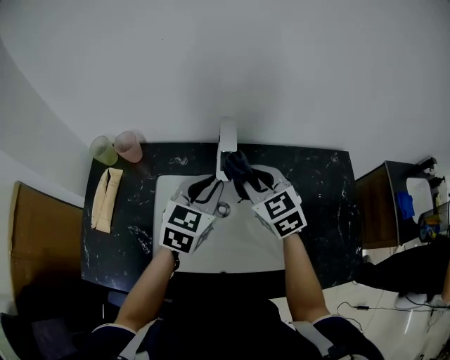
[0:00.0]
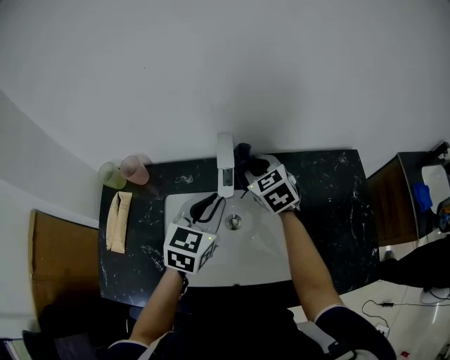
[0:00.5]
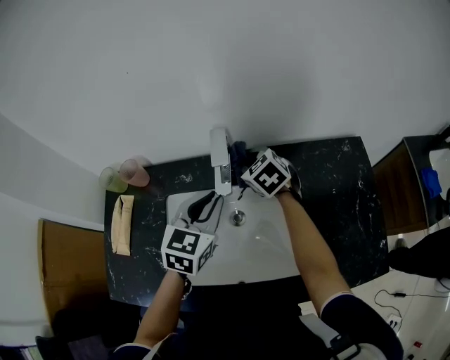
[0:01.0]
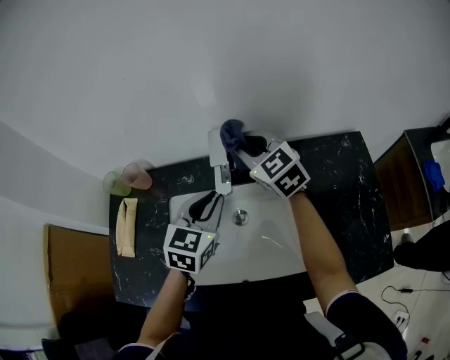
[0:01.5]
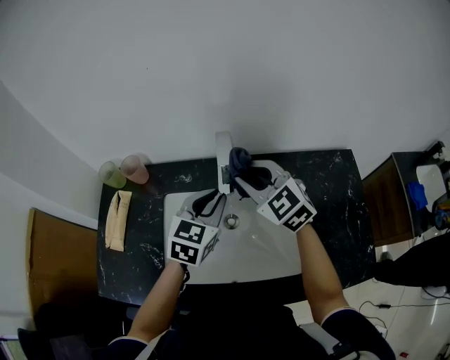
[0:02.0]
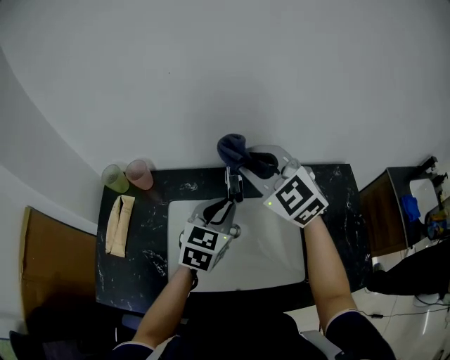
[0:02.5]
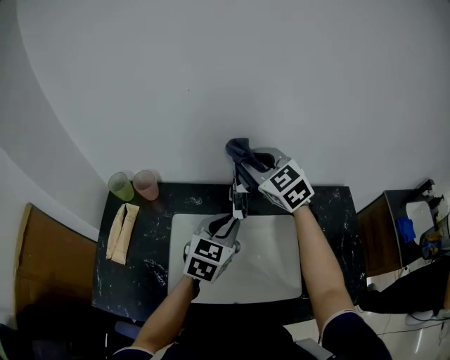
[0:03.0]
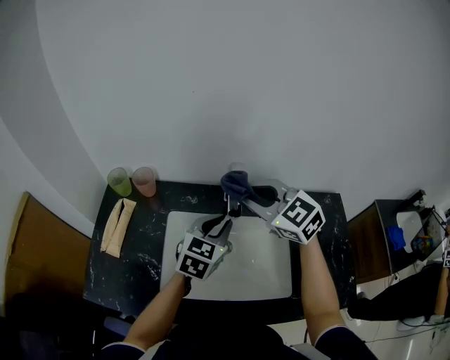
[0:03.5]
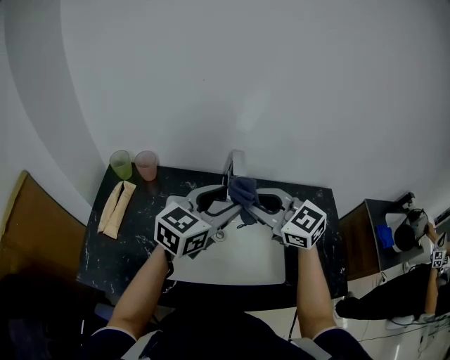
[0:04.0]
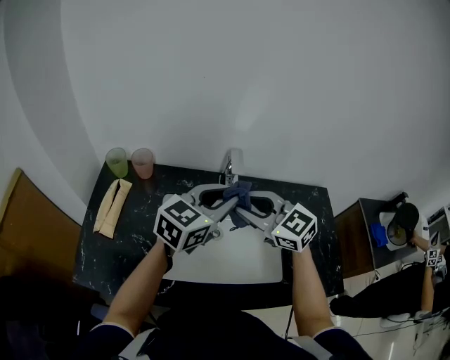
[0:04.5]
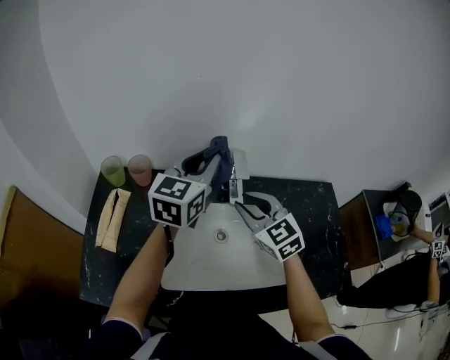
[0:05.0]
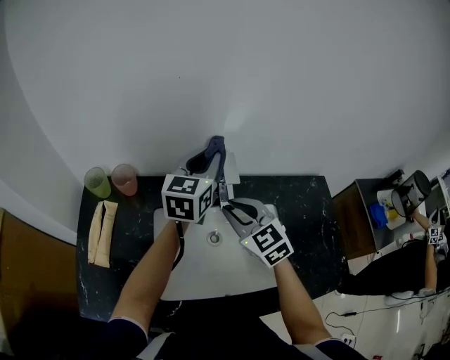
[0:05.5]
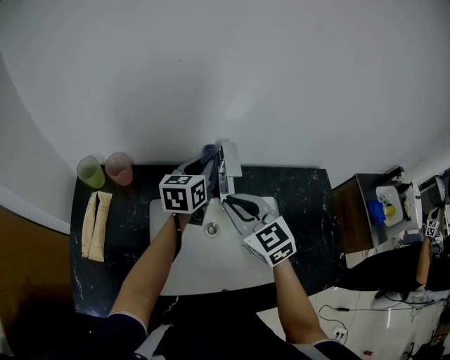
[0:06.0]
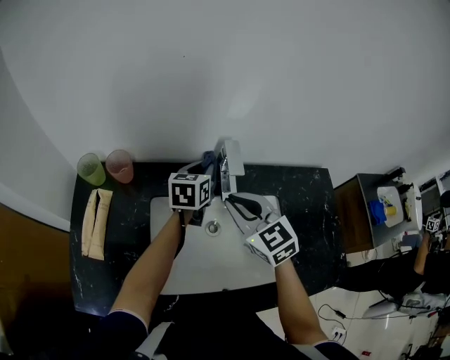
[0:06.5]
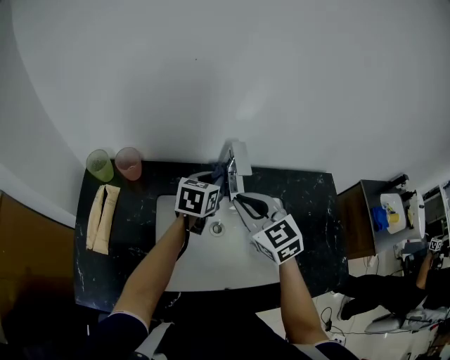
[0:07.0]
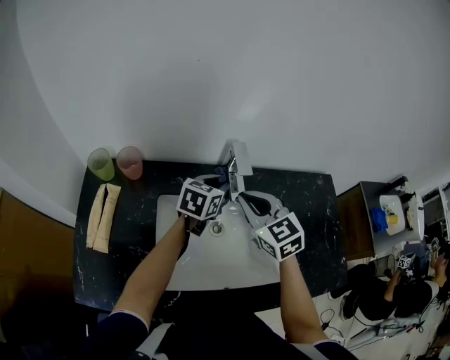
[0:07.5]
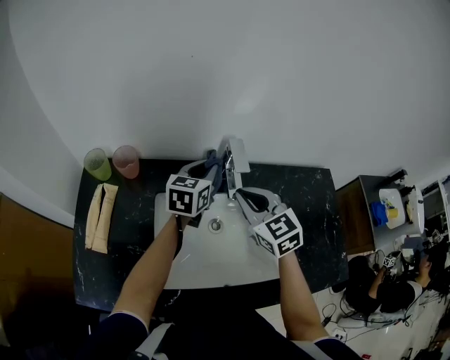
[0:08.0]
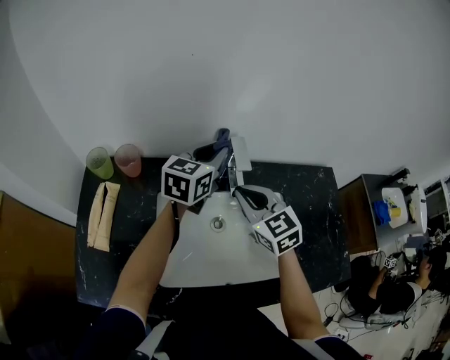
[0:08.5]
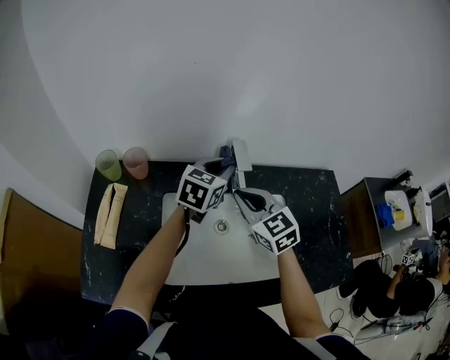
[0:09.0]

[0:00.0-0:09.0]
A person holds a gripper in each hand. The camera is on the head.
2.0 to 4.5 s: The left gripper heads upward, covering about 10 cm, swivels about 30 degrees, and opens and closes again. Meanwhile the right gripper moves backward, some 10 cm.
4.5 to 7.0 s: The right gripper moves downward and forward, roughly 10 cm, and turns by approximately 20 degrees; the left gripper travels downward and forward by about 20 cm, and changes its angle by approximately 30 degrees.
7.0 to 9.0 s: The left gripper travels upward by approximately 10 cm.

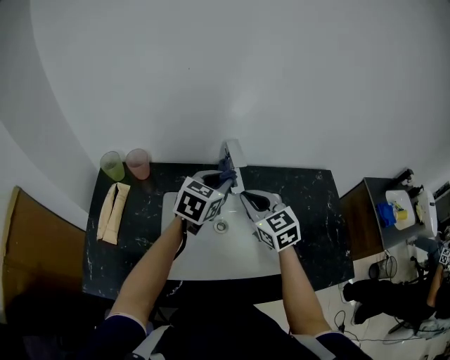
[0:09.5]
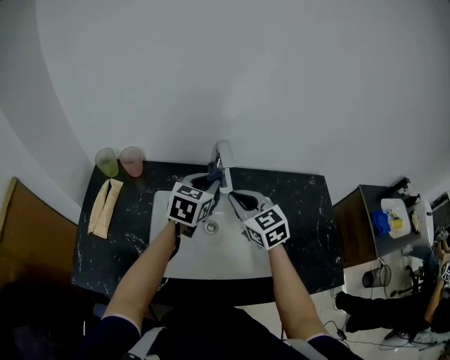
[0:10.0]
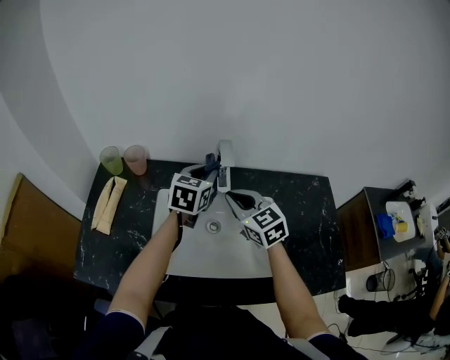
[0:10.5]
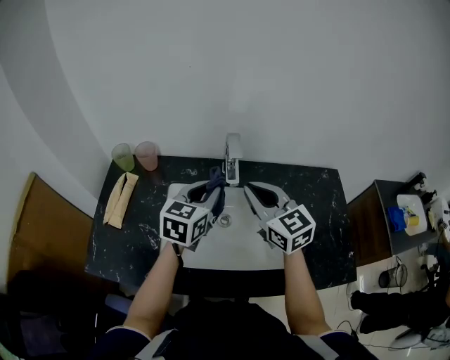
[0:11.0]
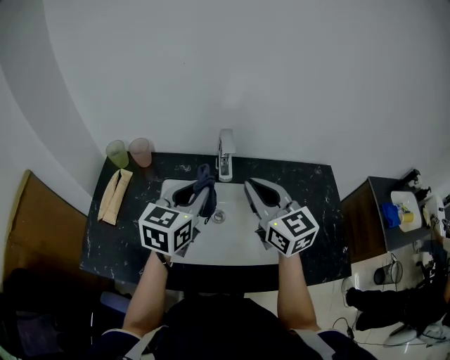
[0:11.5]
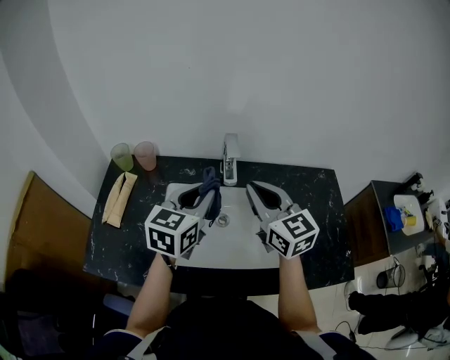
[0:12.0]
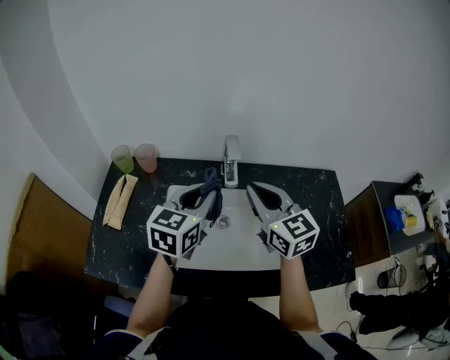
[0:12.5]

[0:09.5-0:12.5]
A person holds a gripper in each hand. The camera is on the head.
9.5 to 11.0 s: The right gripper moves upward, about 10 cm. The left gripper moves backward, roughly 5 cm.
11.0 to 12.5 s: The left gripper moves some 5 cm.

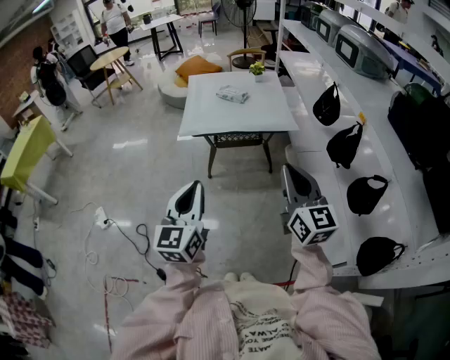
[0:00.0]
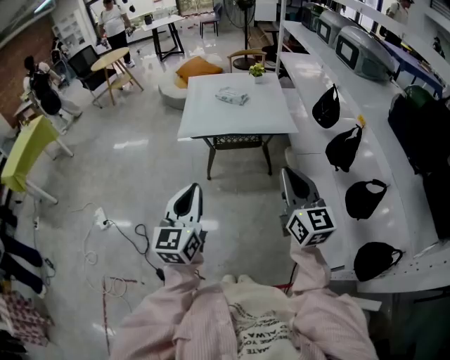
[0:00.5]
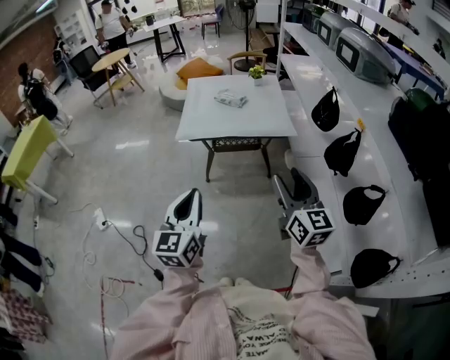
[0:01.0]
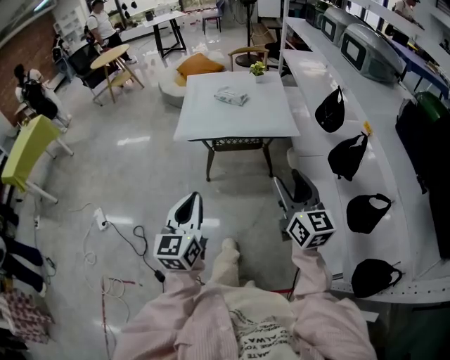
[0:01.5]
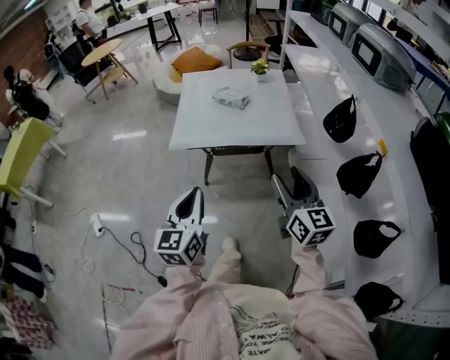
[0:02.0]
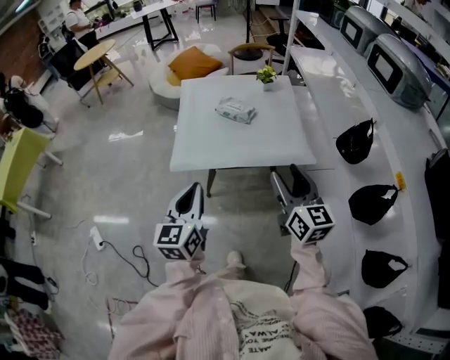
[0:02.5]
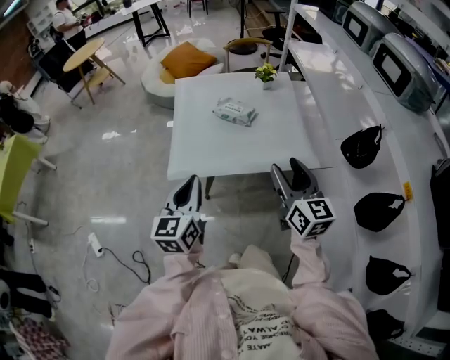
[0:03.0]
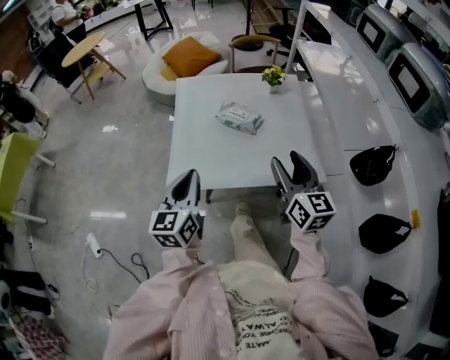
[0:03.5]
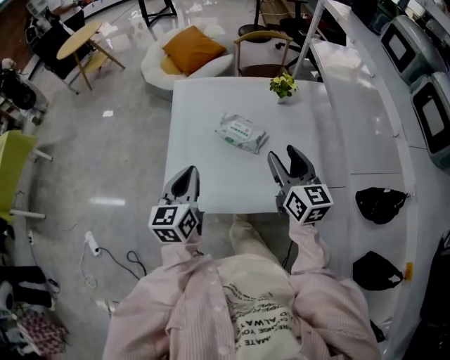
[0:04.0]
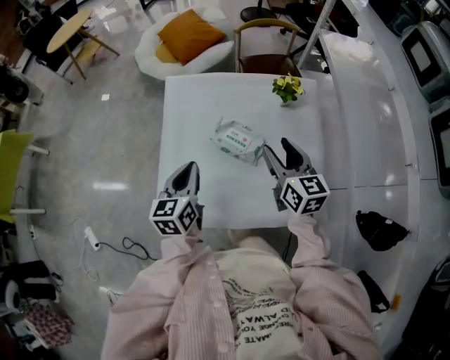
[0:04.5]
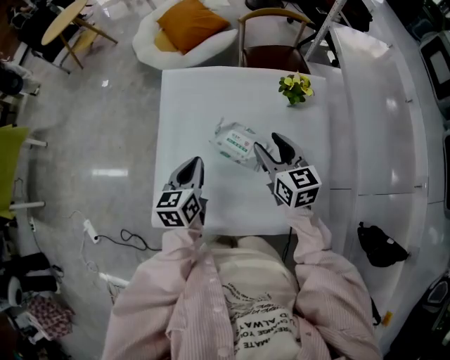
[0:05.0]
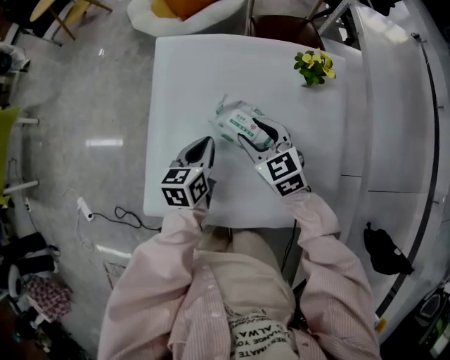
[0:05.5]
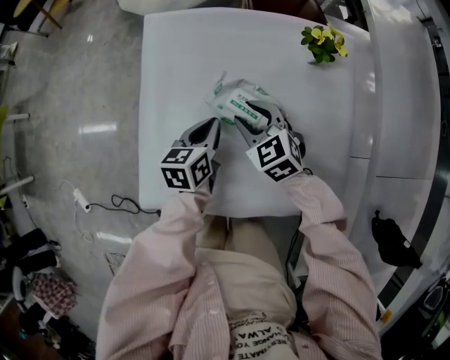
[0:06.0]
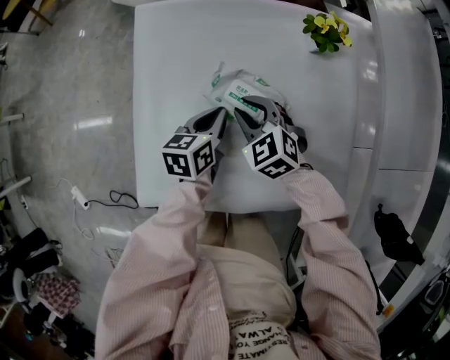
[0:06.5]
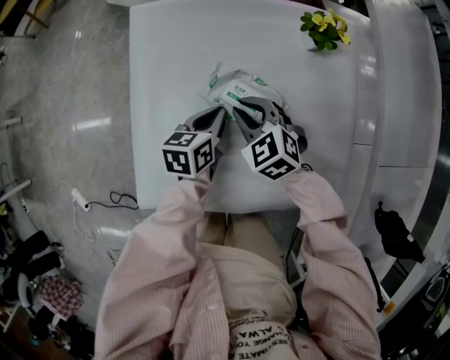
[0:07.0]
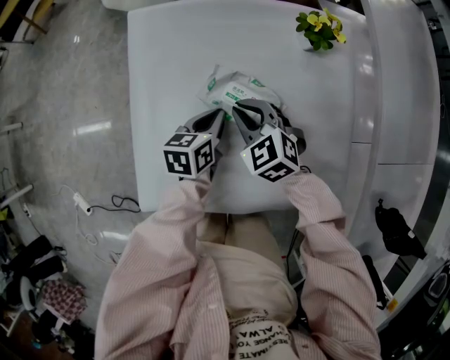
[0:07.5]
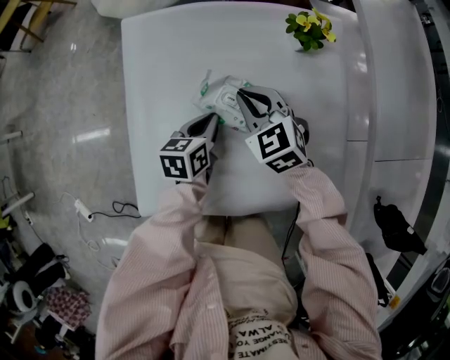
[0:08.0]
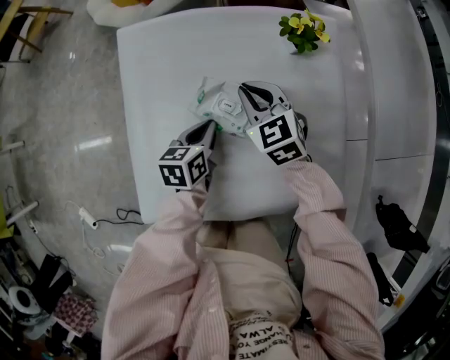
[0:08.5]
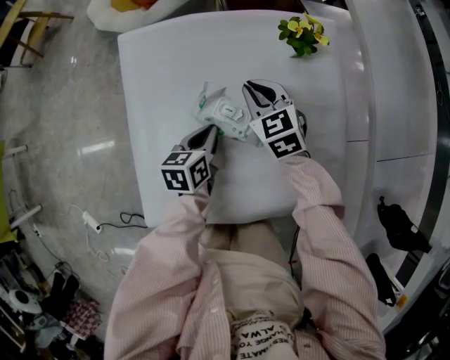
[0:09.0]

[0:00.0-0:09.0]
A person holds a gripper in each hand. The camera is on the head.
0.0 to 2.0 s: The two grippers go roughly 20 cm forward and downward. The right gripper opens.
2.0 to 4.5 s: The pair of grippers is taken forward, approximately 60 cm.
4.5 to 7.0 s: The left gripper goes about 20 cm downward, forward and to the right, and changes its angle by some 30 degrees, while the right gripper goes some 25 cm downward and to the left, rotates some 50 degrees, and closes up.
7.0 to 9.0 s: The right gripper moves forward and to the right, about 10 cm, and changes its angle by approximately 20 degrees.

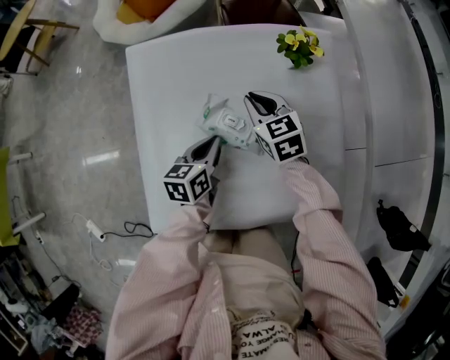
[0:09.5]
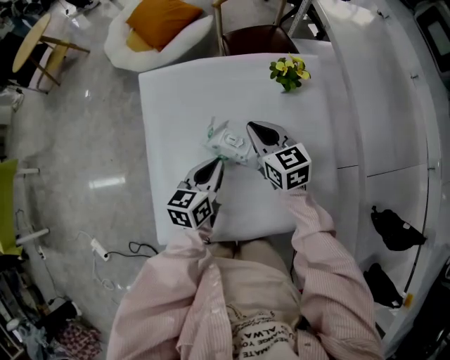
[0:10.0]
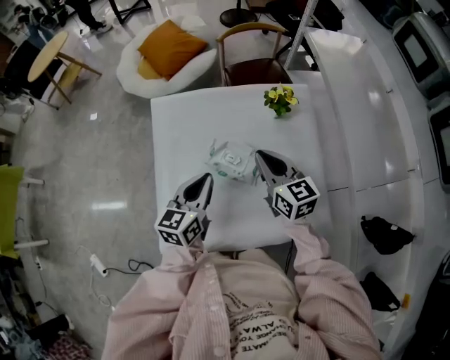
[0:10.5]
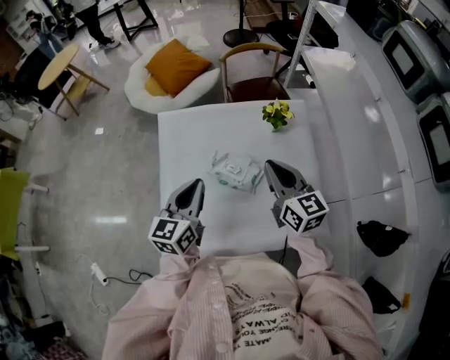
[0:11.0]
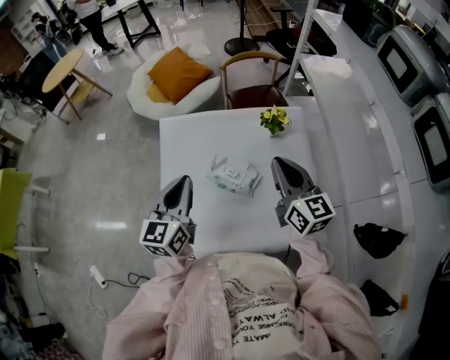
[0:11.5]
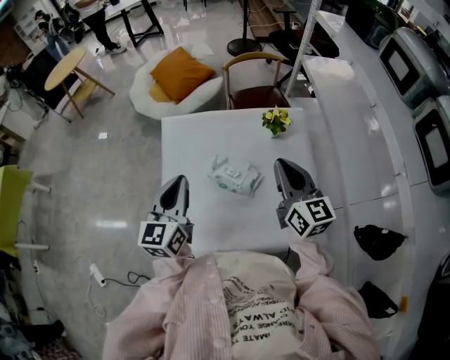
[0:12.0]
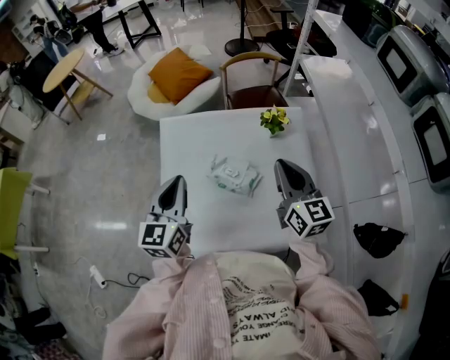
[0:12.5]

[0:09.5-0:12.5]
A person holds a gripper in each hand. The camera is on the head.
9.5 to 11.0 s: The left gripper moves upward, approximately 20 cm, and swivels roughly 30 degrees. The right gripper moves upward and backward, some 25 cm, and swivels approximately 30 degrees.
11.0 to 12.5 s: The right gripper moves roughly 5 cm. The left gripper heads upward, covering about 5 cm.

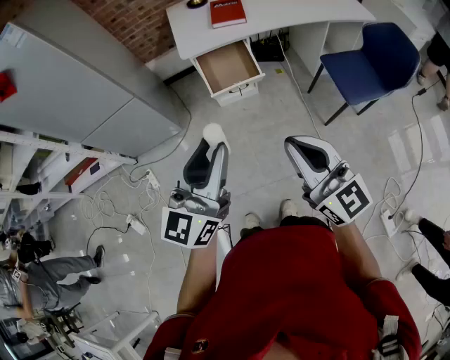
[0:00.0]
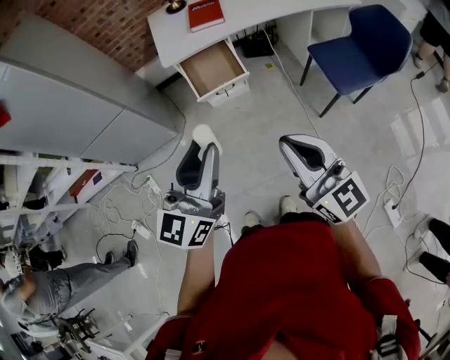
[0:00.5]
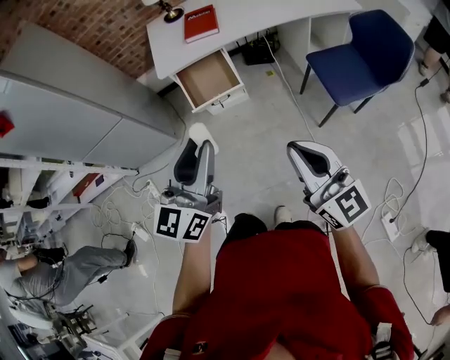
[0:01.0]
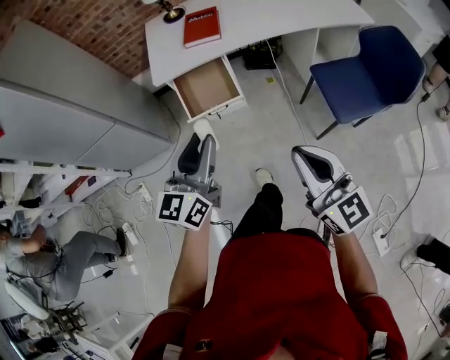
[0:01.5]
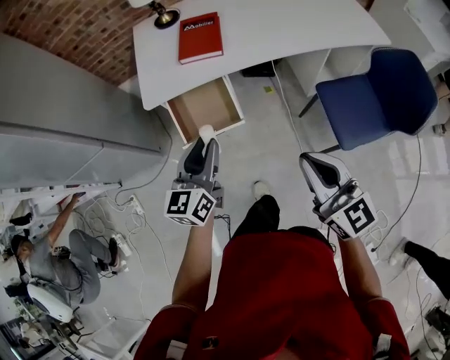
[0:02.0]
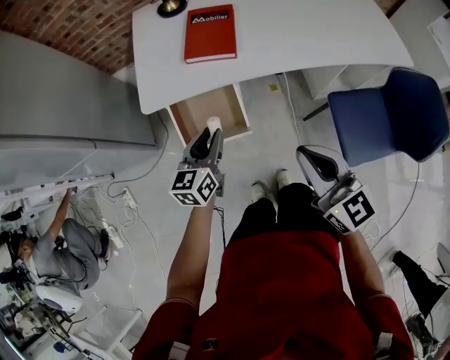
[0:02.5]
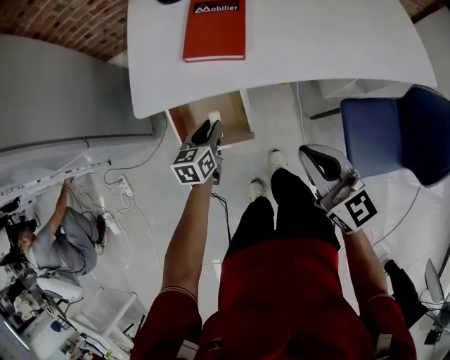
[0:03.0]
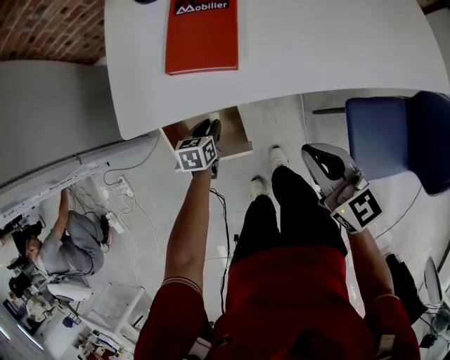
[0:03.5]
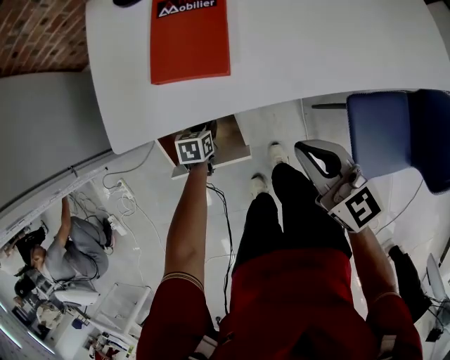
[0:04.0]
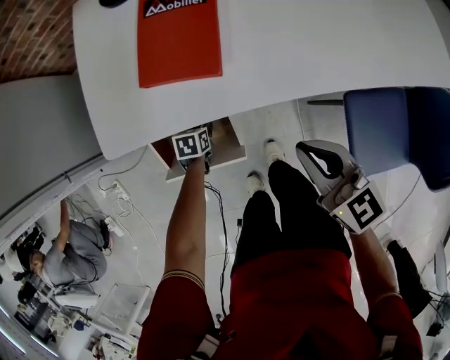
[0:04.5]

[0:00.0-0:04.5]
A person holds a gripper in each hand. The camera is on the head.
0.0 to 2.0 s: The left gripper heads forward and downward, covering about 40 cm, and turns by approximately 20 degrees, while the right gripper heads forward and to the right, covering roughly 35 cm.
2.0 to 4.5 s: The left gripper moves downward and forward, roughly 50 cm, and tilts its fingers roughly 60 degrees downward. Meanwhile the right gripper is displaced forward and downward by some 35 cm, and changes its angle by roughly 20 degrees.
